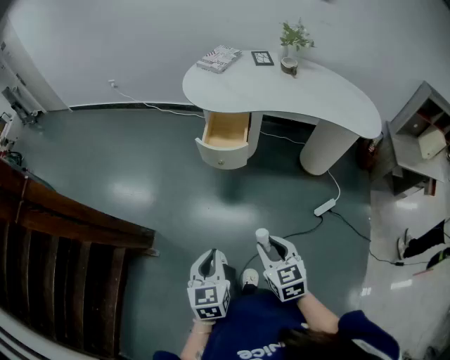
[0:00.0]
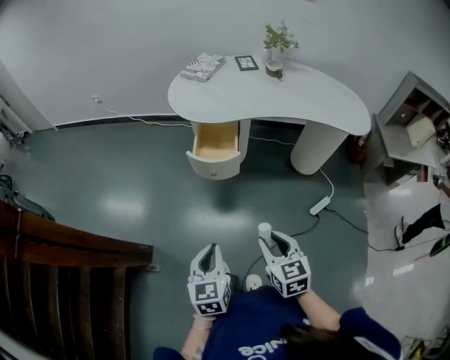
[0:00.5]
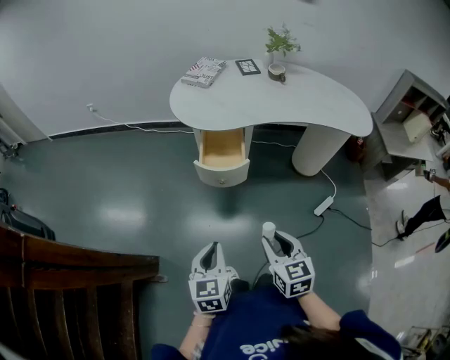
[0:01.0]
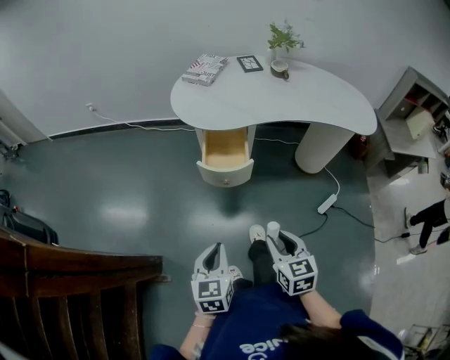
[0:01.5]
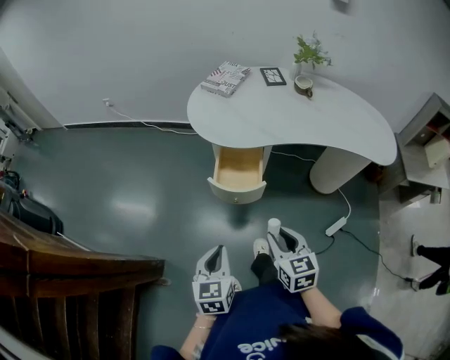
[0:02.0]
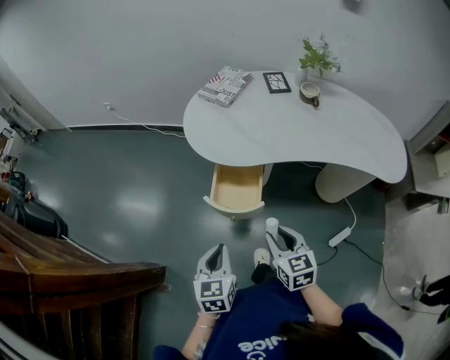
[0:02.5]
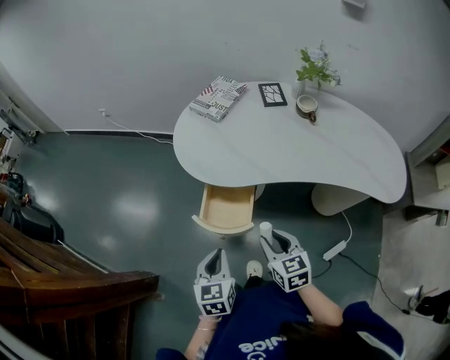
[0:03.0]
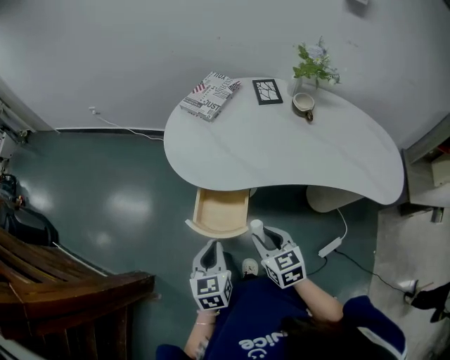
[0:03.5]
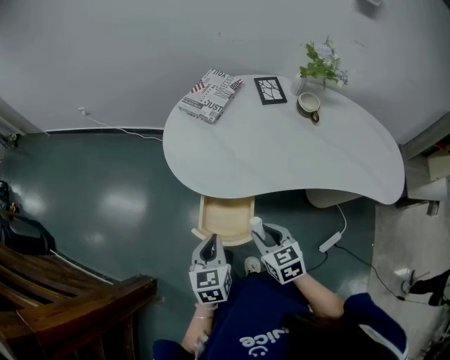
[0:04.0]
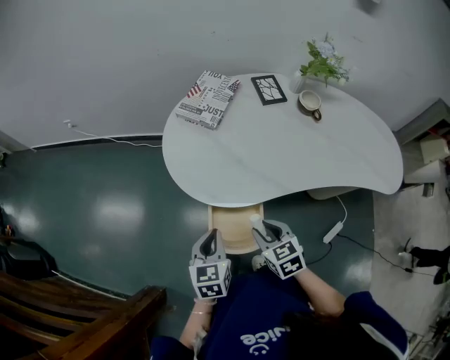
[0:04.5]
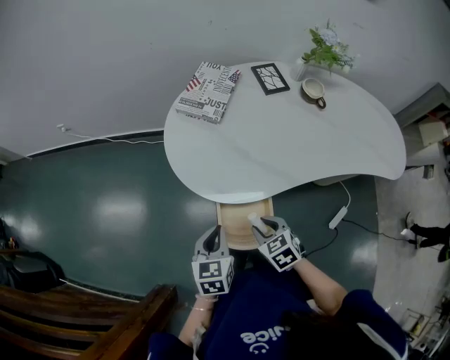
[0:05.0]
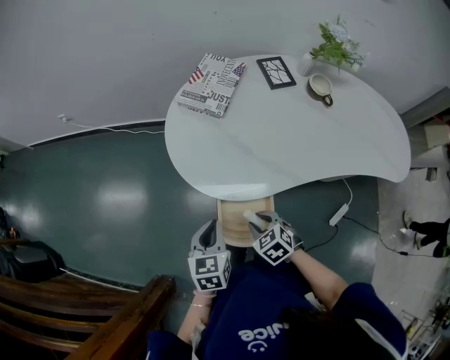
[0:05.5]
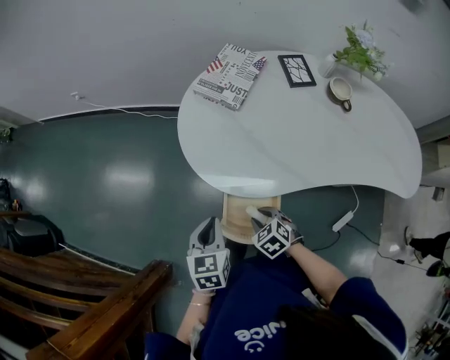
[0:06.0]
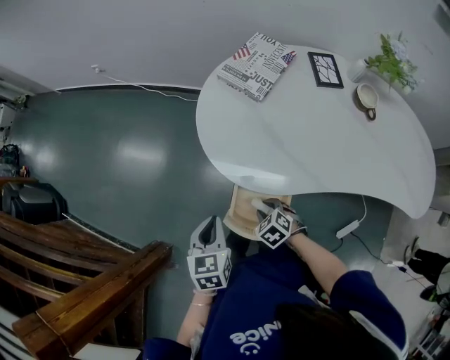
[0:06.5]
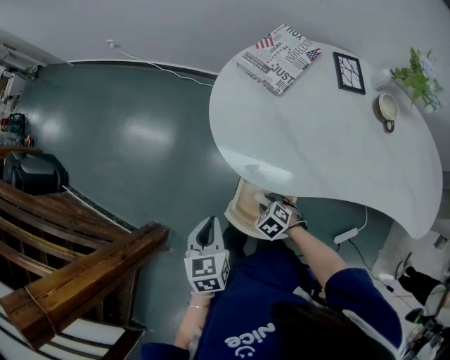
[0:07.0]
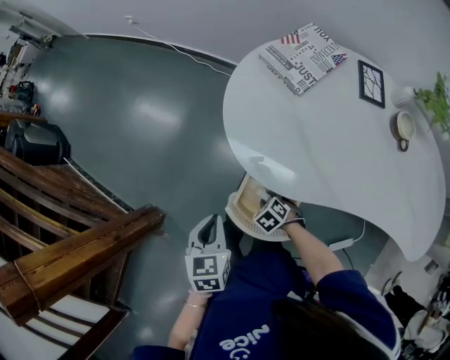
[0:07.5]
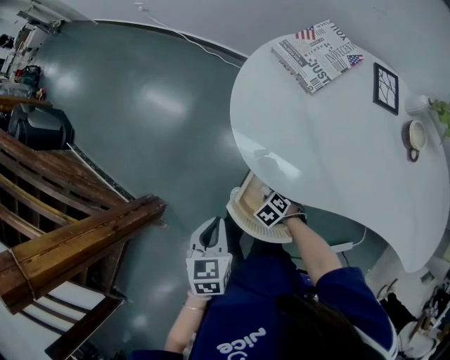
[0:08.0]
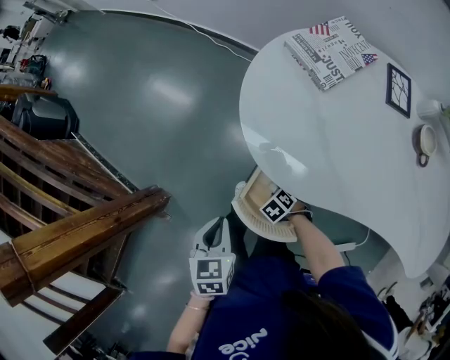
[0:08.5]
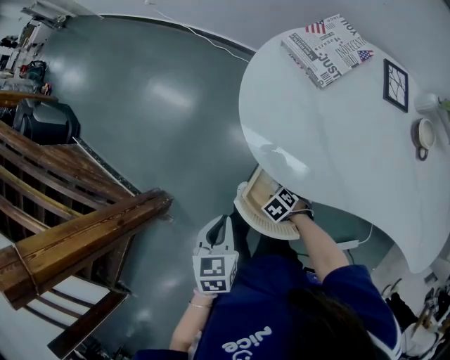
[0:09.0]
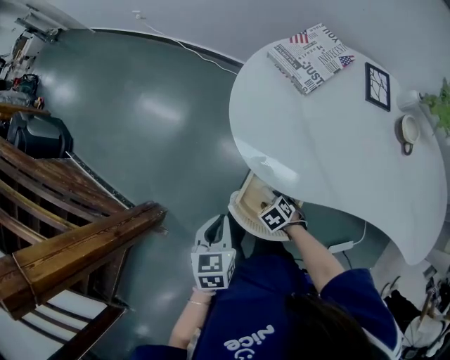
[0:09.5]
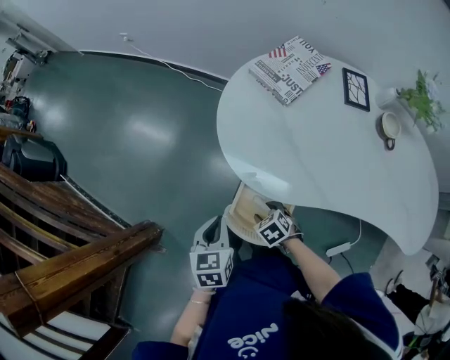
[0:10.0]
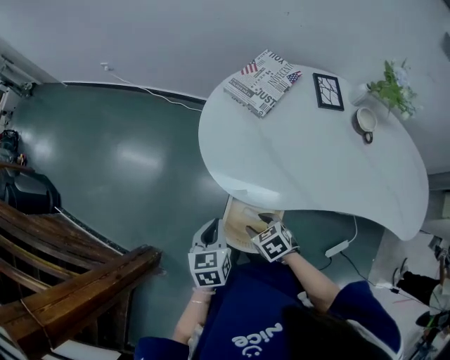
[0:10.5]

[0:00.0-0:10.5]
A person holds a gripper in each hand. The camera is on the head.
0:00.0 to 0:02.0: Both grippers move forward, roughly 20 cm.
0:02.0 to 0:04.0: The grippers both shift forward by roughly 25 cm.
0:04.0 to 0:06.5: The right gripper goes approximately 20 cm downward, to the left and forward, and rotates roughly 40 degrees; the left gripper moves to the left and forward, about 15 cm.
0:06.5 to 0:08.5: The right gripper shifts approximately 15 cm downward, and rotates about 20 degrees; the left gripper moves some 5 cm.
0:08.5 to 0:10.5: The right gripper travels upward by approximately 15 cm, and changes its angle by approximately 30 degrees; the left gripper changes place by some 10 cm.

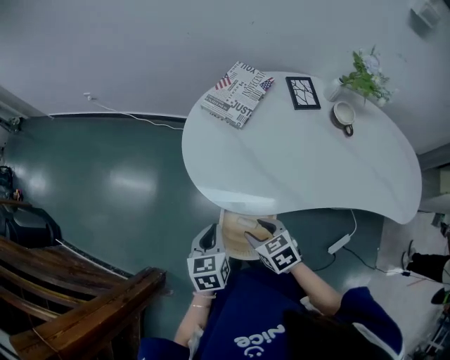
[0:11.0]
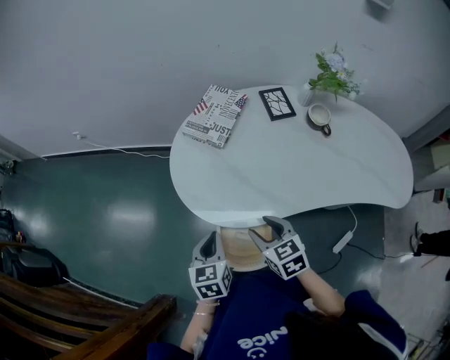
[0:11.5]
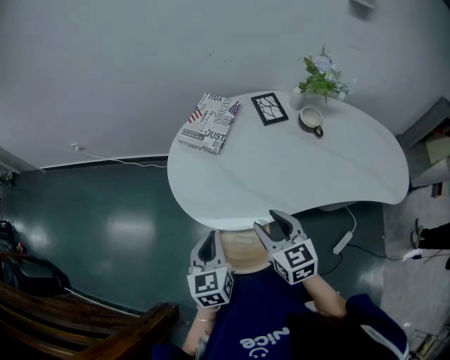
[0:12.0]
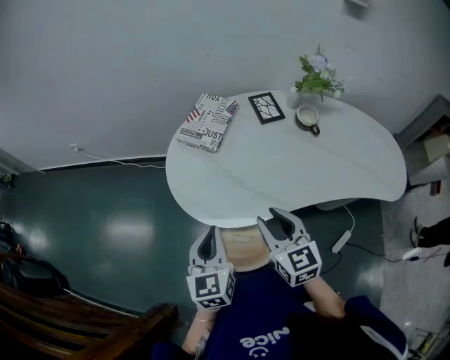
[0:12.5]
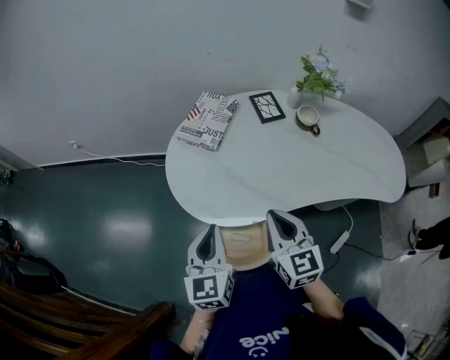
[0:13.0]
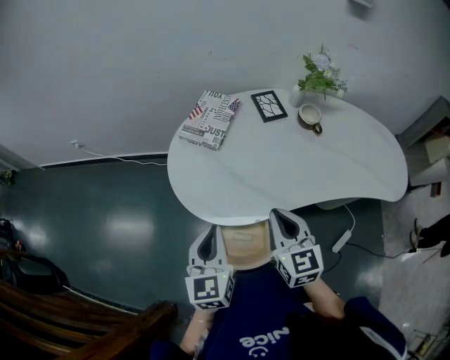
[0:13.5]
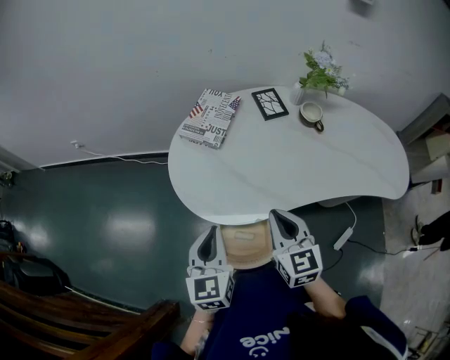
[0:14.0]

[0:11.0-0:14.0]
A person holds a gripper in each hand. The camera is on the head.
0:11.0 to 0:12.5: The left gripper goes roughly 15 cm upward, and turns by about 20 degrees, while the right gripper heads upward and to the right, covering about 20 cm, and points its fingers some 30 degrees further upward.
0:12.5 to 0:14.0: The right gripper closes its fingers.

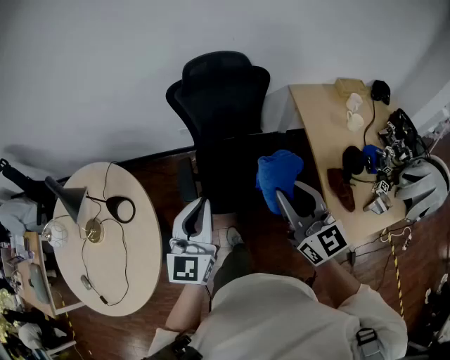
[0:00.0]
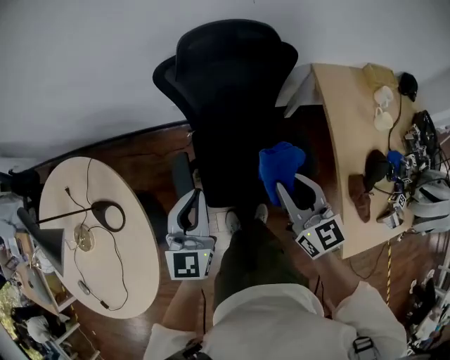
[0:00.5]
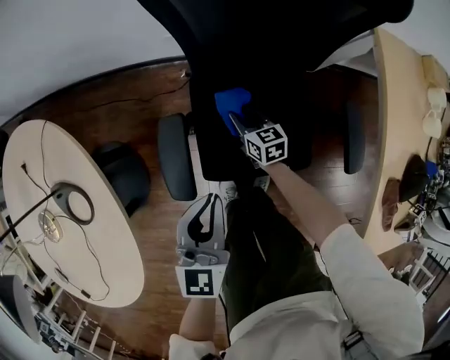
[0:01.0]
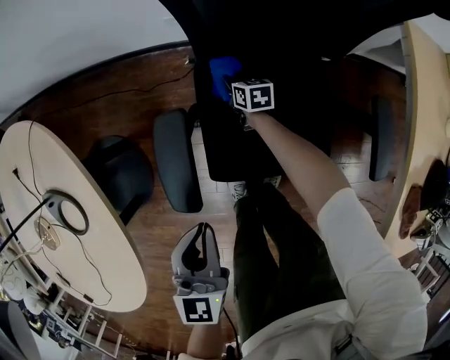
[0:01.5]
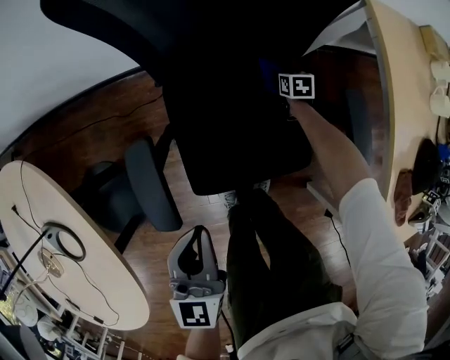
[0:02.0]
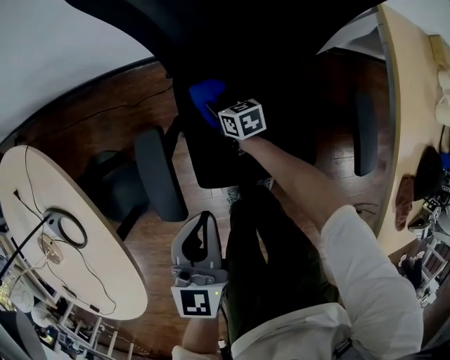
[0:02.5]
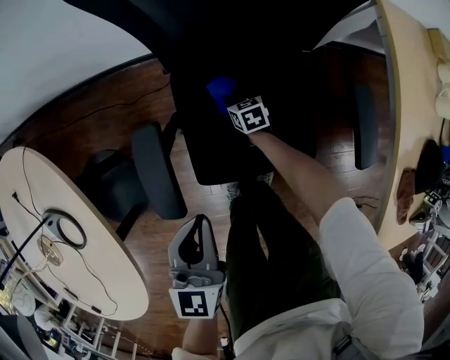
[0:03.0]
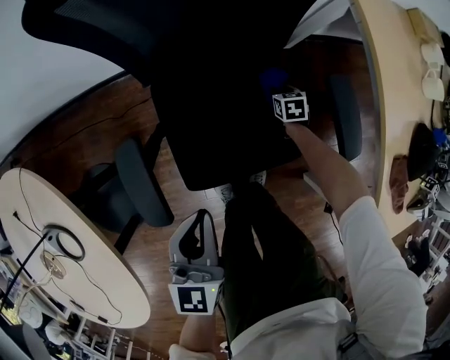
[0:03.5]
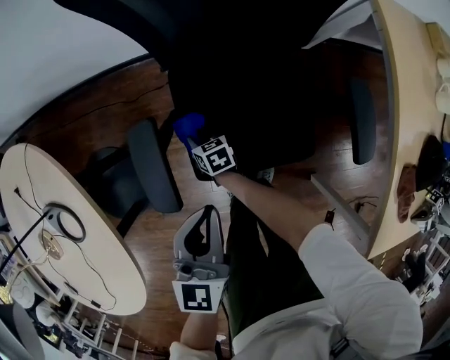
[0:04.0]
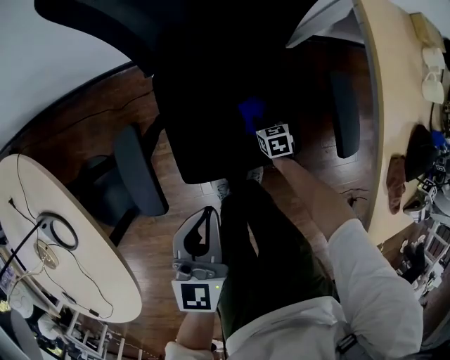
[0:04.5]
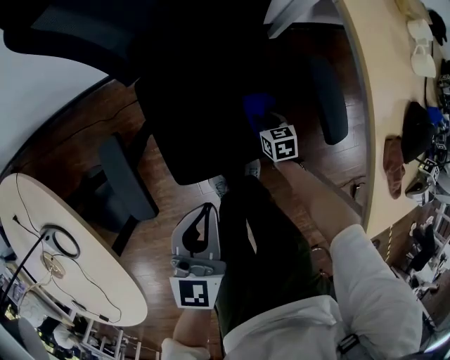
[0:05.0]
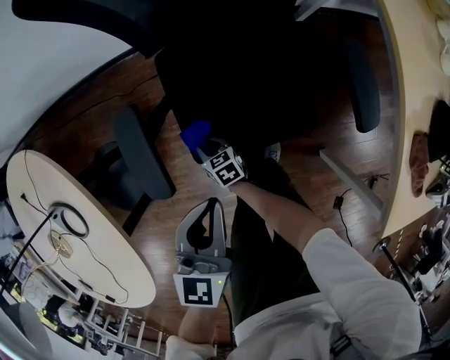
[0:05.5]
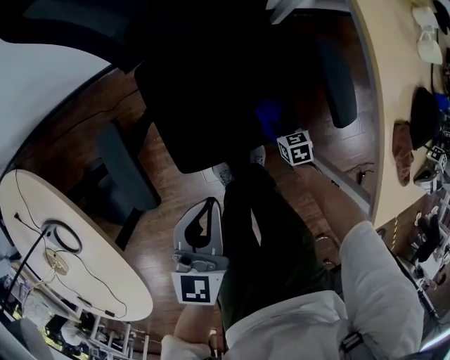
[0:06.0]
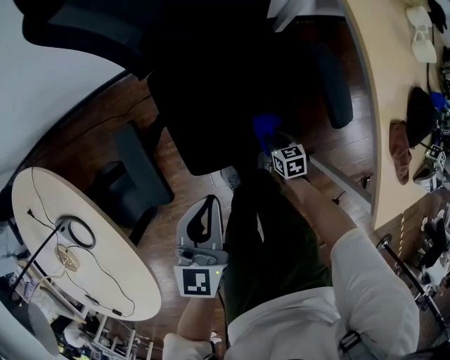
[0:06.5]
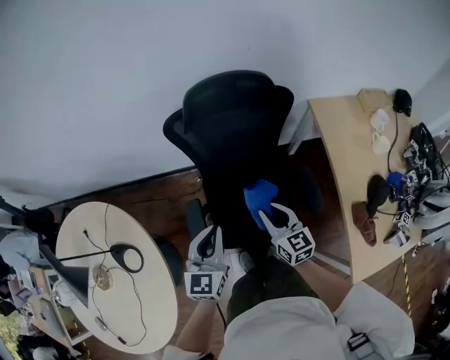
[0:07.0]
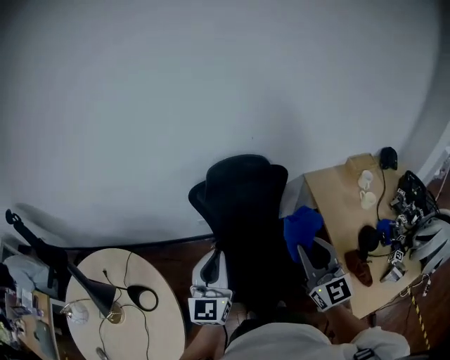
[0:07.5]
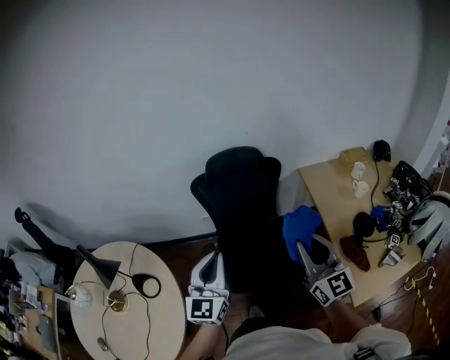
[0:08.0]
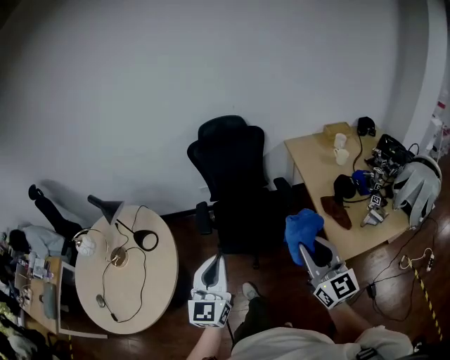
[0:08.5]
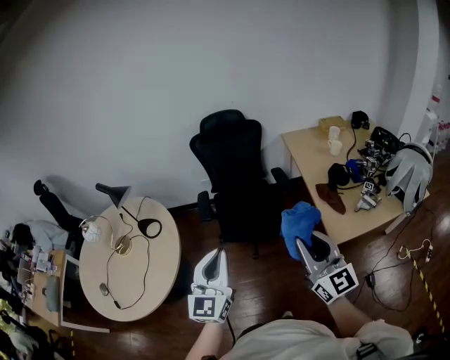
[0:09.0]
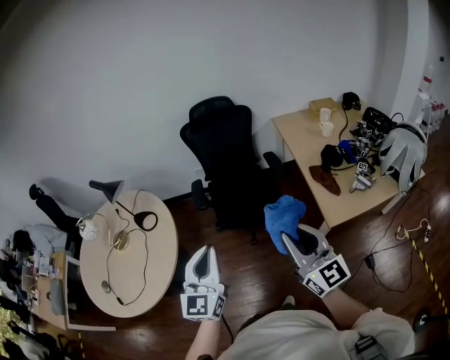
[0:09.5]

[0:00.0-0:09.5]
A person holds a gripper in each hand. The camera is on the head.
0:00.0 to 0:02.0: The two grippers travel together, forward, about 60 cm. The right gripper is displaced downward by roughly 80 cm, and points its fingers approximately 80 degrees further downward. Meanwhile the left gripper goes some 40 cm downward, and turns by some 20 degrees.
0:02.0 to 0:04.0: The right gripper moves left and right over roughly 35 cm, changing direction 2 times, and changes its angle by about 30 degrees.
0:04.0 to 0:05.5: The left gripper ends up roughly 5 cm from where it was; the right gripper goes about 10 cm backward, and reaches roughly 30 cm to the right, then returns.
0:05.5 to 0:07.5: The left gripper is displaced upward and backward by about 50 cm, and turns by approximately 30 degrees. The right gripper is displaced upward by some 90 cm, and angles its fingers upward, by some 60 degrees.
0:07.5 to 0:09.5: The pair of grippers is taken backward, some 60 cm.

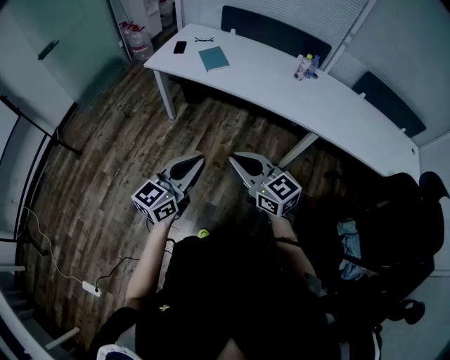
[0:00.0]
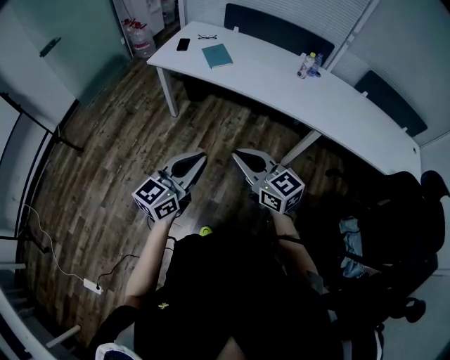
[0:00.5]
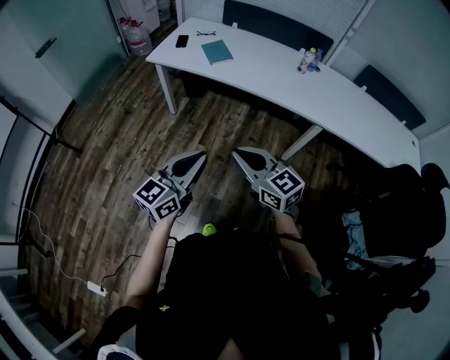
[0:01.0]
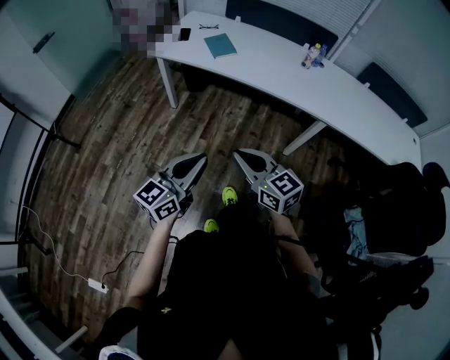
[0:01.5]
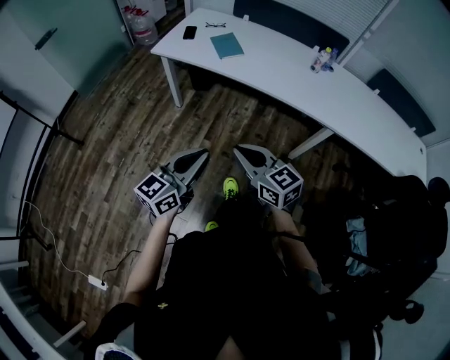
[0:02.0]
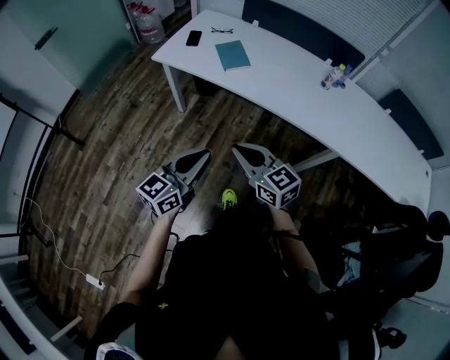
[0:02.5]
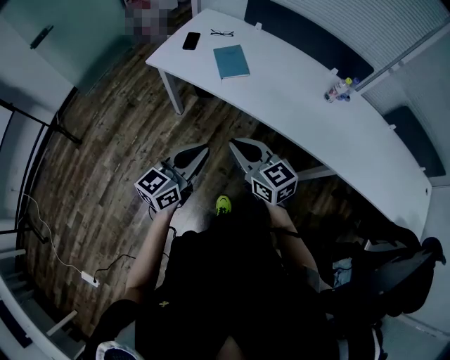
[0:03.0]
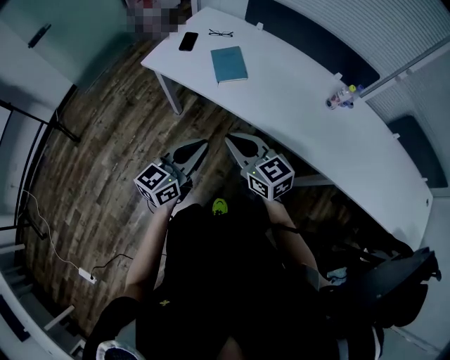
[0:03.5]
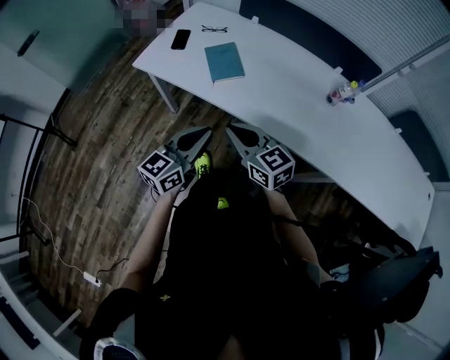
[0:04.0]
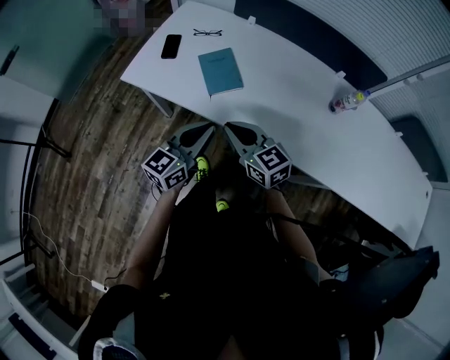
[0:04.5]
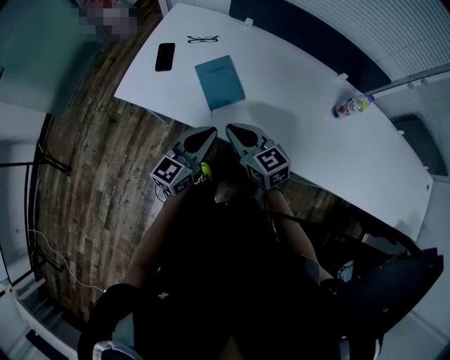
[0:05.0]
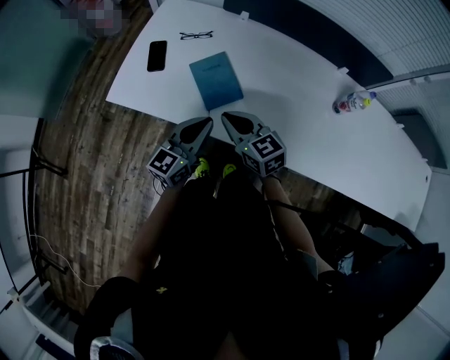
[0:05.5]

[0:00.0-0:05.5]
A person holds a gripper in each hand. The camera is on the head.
0:00.0 to 0:02.0: The right gripper moves to the left and forward, approximately 5 cm; the left gripper travels to the left by roughly 5 cm.
0:02.0 to 0:03.5: Both grippers move forward, about 25 cm.
0:03.5 to 0:05.5: Both grippers travel together forward, approximately 30 cm.
